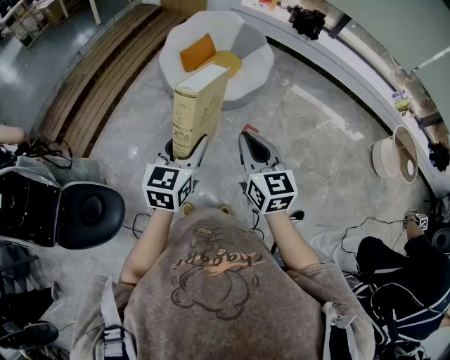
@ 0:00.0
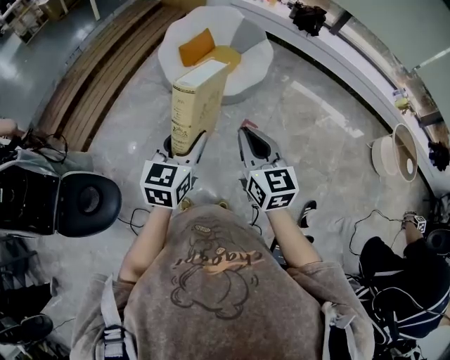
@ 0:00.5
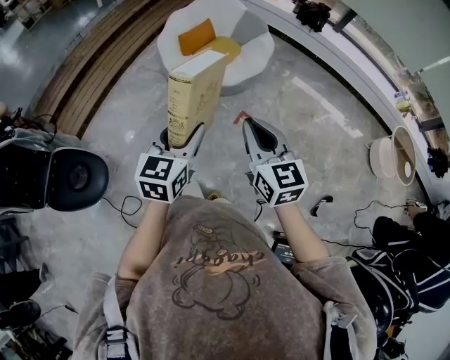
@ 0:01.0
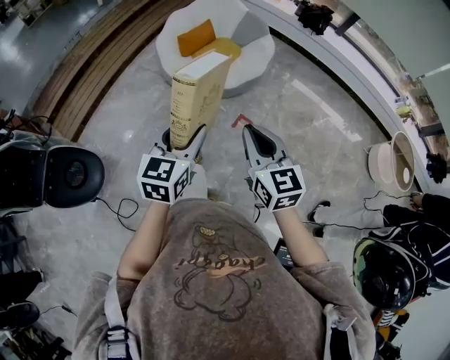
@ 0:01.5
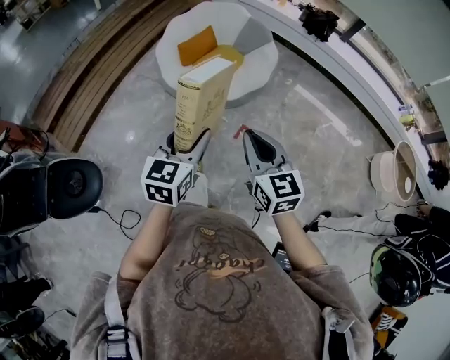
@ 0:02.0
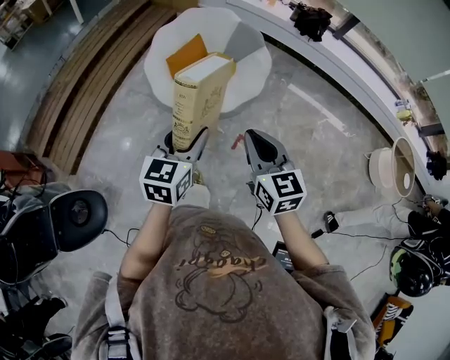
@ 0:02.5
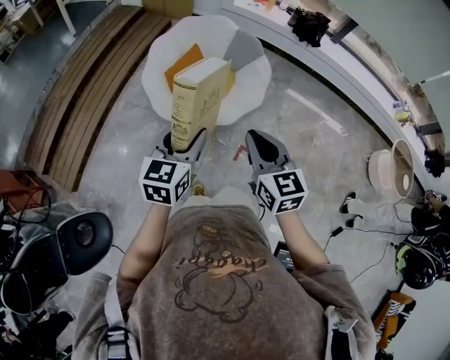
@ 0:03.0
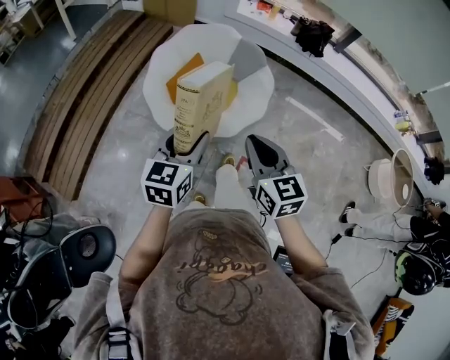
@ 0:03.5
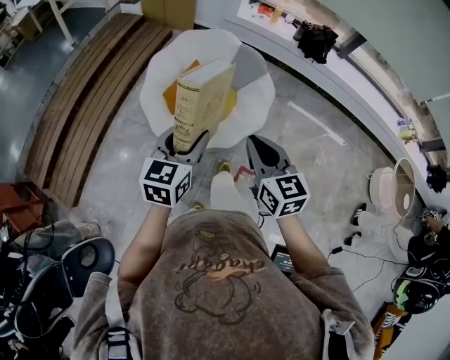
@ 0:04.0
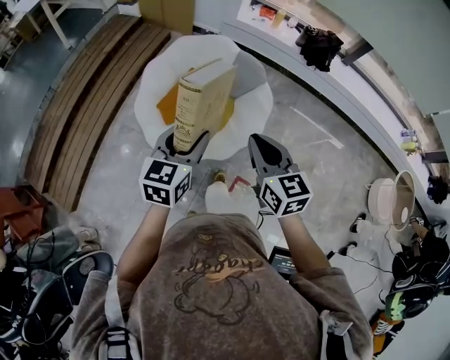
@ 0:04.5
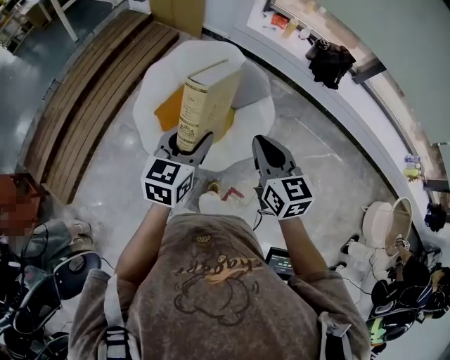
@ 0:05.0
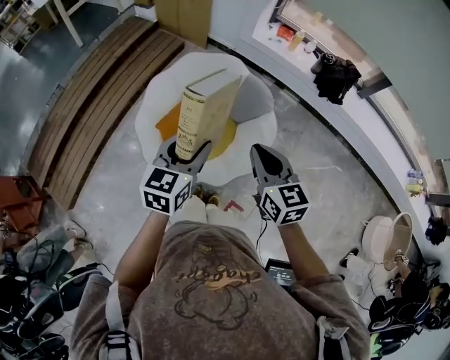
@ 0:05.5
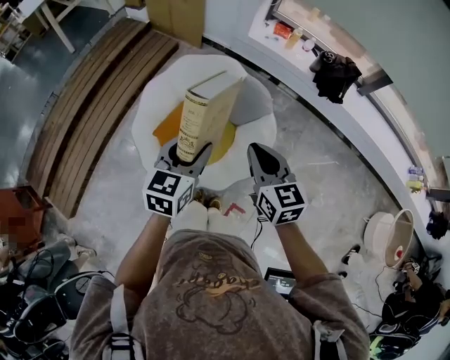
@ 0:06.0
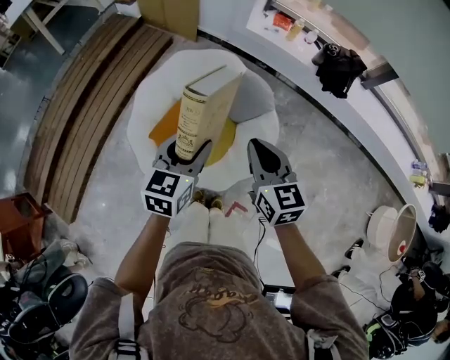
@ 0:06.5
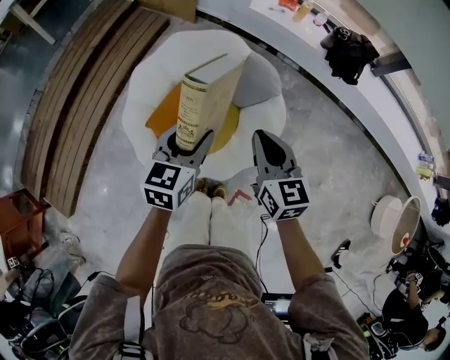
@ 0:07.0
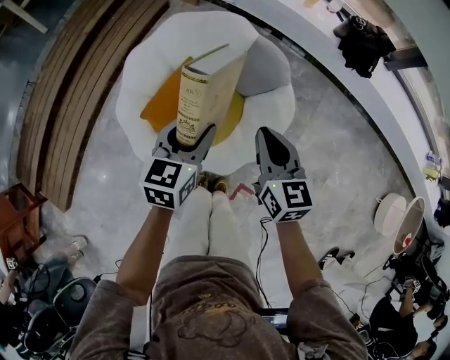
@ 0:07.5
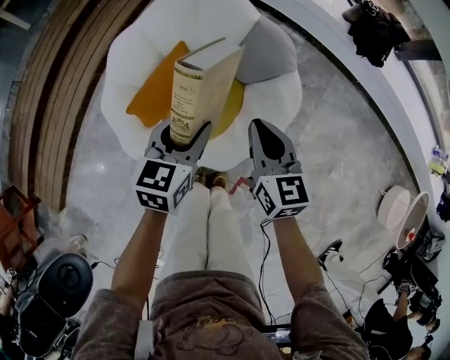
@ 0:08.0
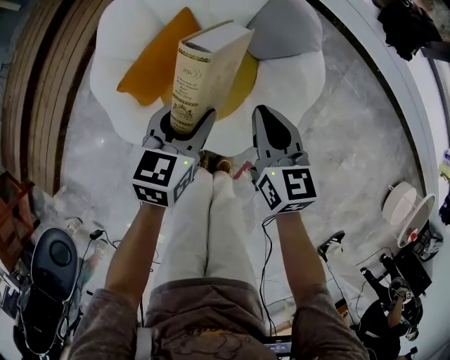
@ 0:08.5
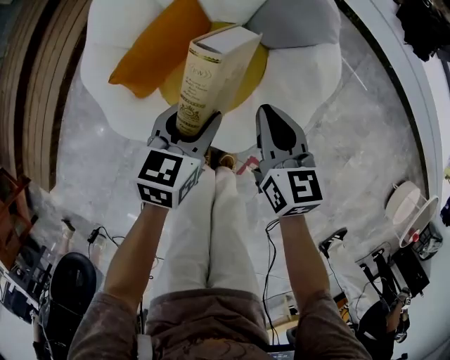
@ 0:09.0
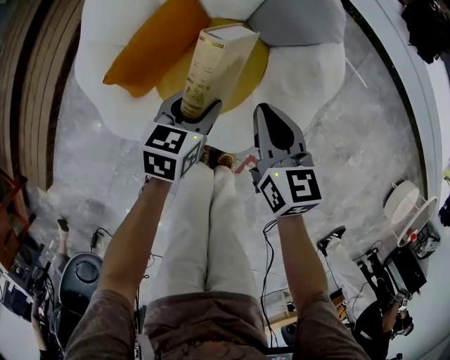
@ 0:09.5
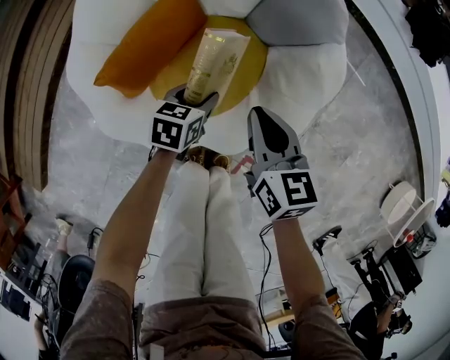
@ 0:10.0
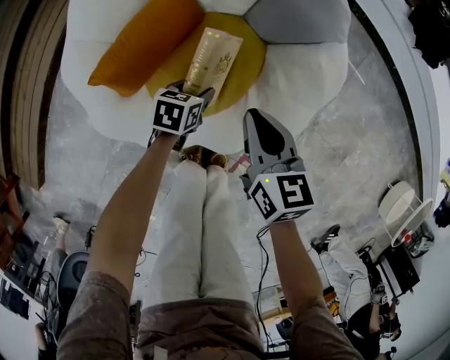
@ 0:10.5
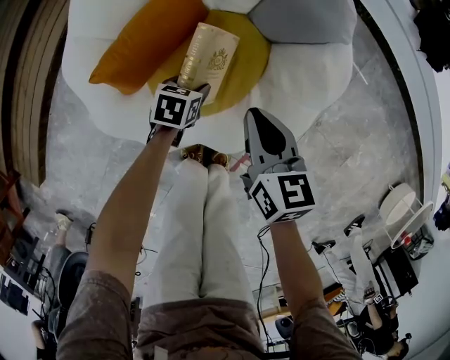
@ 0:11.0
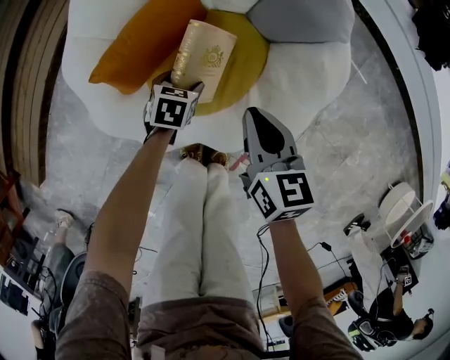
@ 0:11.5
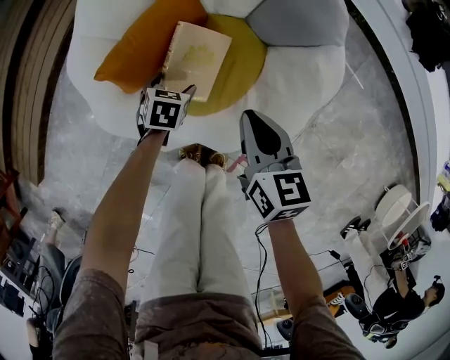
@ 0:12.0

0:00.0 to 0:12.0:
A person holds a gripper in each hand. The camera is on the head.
0:00.0 to 0:02.0: The two grippers go roughly 10 cm forward.
0:02.0 to 0:04.0: Both grippers travel together forward, some 35 cm.
0:04.0 to 0:06.0: Both grippers travel together forward, roughly 25 cm.
0:06.0 to 0:08.0: The two grippers go some 25 cm downward.
0:08.0 to 0:10.0: The left gripper travels downward by about 30 cm, and turns by about 30 degrees, while the right gripper heads downward, covering approximately 20 cm.
0:10.0 to 0:12.0: The left gripper heads to the left and downward, covering approximately 10 cm, changes its angle by about 20 degrees, and opens up.

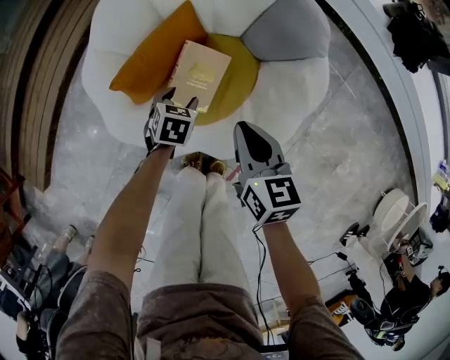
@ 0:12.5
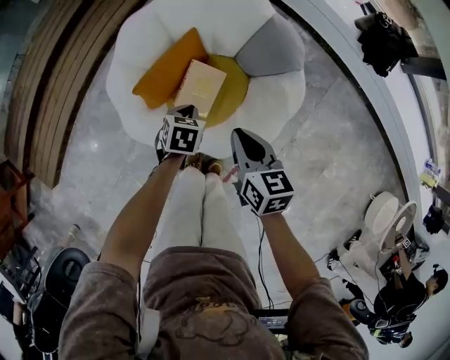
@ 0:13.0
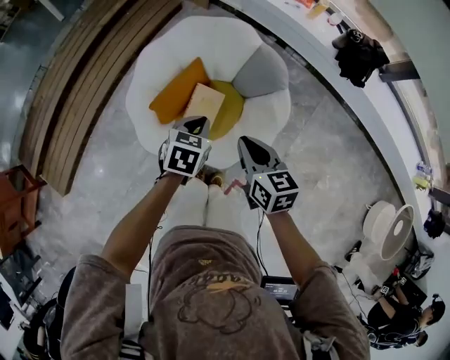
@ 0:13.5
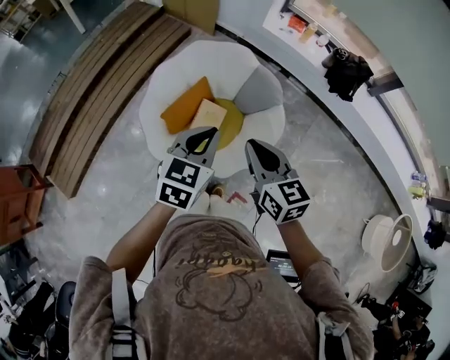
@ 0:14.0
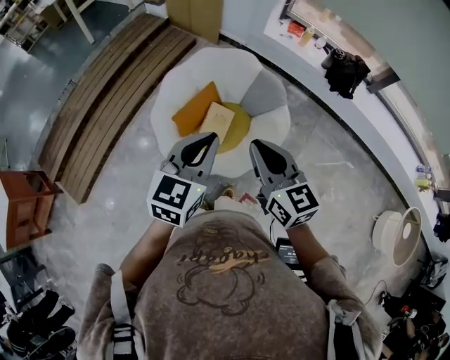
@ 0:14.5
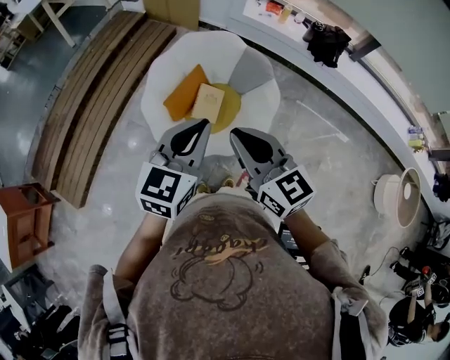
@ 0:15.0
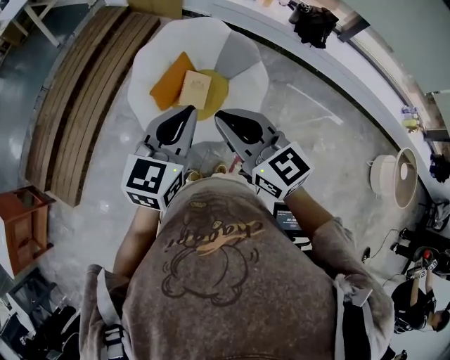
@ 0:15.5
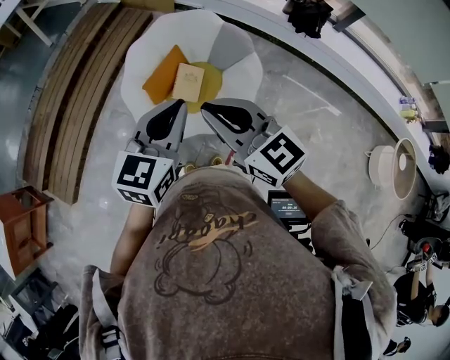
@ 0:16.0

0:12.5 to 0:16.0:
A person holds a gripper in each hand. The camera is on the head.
0:12.5 to 0:14.5: Both grippers travel together upward, some 50 cm. The left gripper tips its fingers upward by approximately 50 degrees, and closes, while the right gripper swivels some 30 degrees.
0:14.5 to 0:16.0: The right gripper shifts approximately 10 cm backward and to the left. Meanwhile the left gripper goes about 10 cm backward.

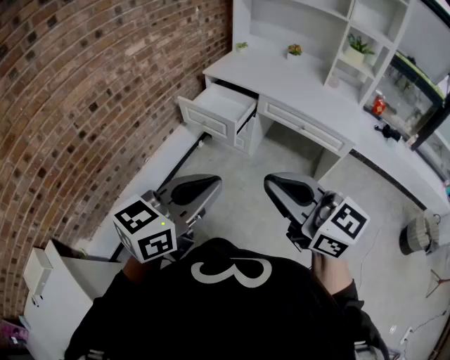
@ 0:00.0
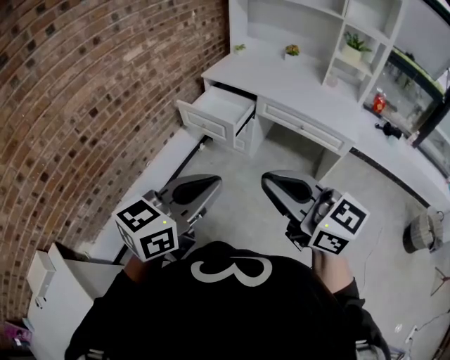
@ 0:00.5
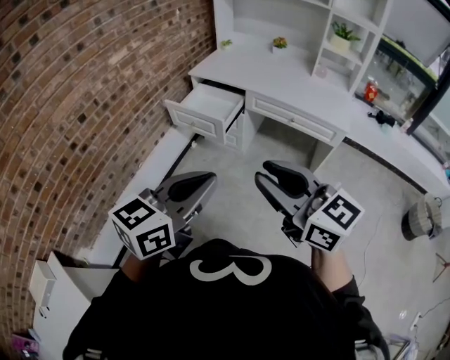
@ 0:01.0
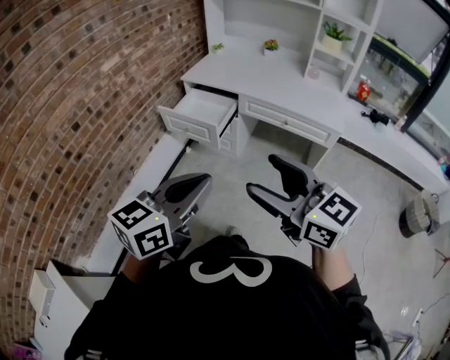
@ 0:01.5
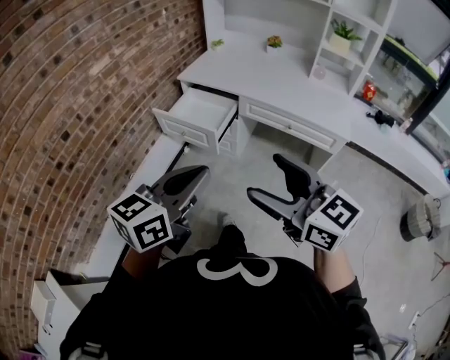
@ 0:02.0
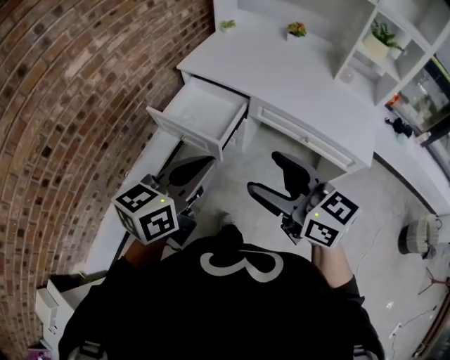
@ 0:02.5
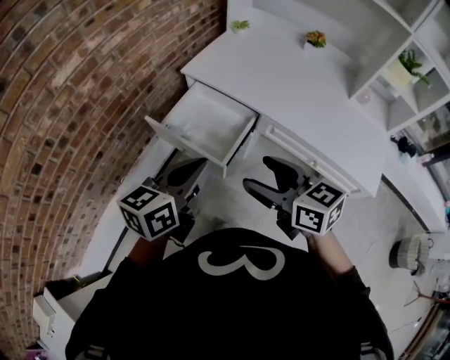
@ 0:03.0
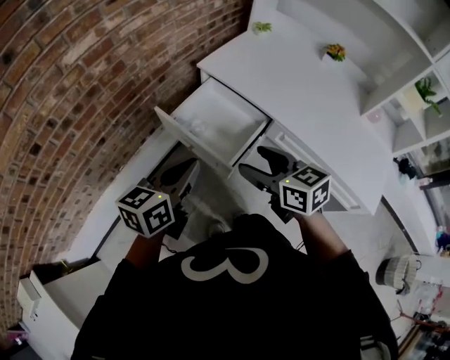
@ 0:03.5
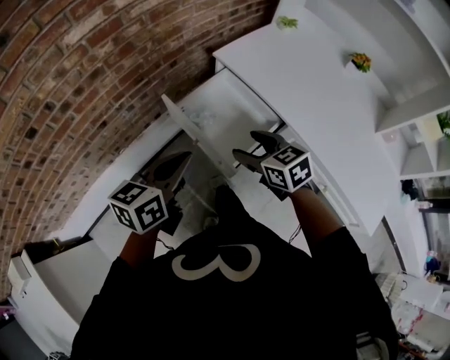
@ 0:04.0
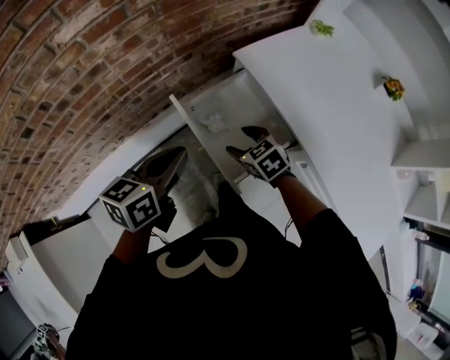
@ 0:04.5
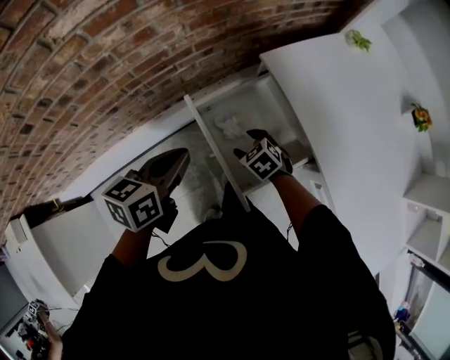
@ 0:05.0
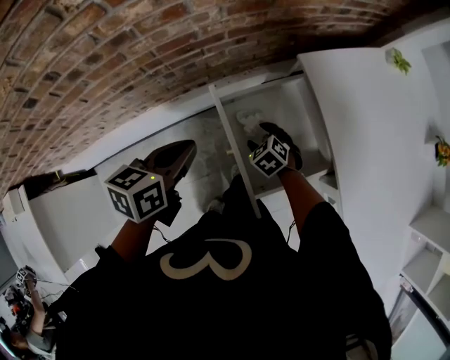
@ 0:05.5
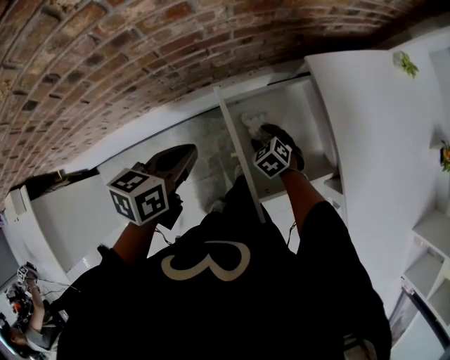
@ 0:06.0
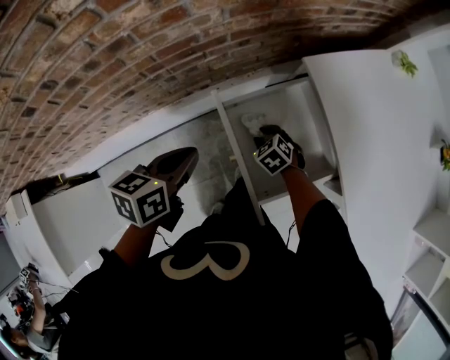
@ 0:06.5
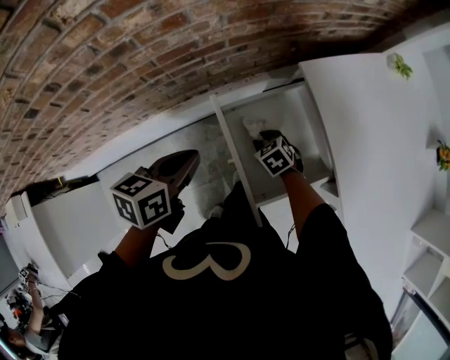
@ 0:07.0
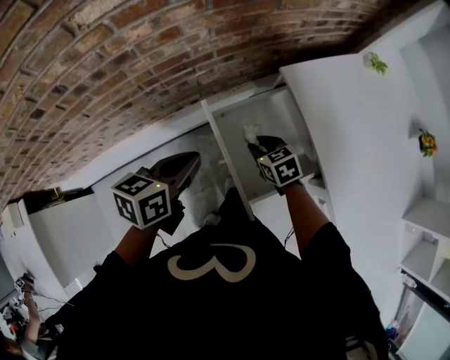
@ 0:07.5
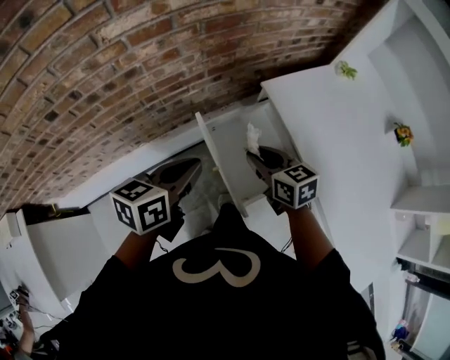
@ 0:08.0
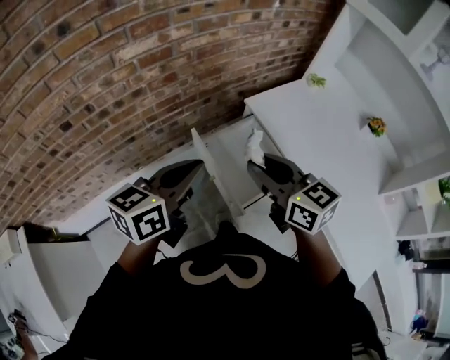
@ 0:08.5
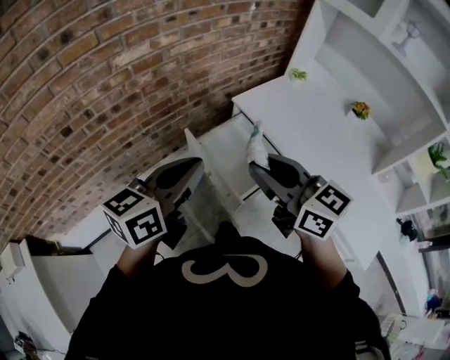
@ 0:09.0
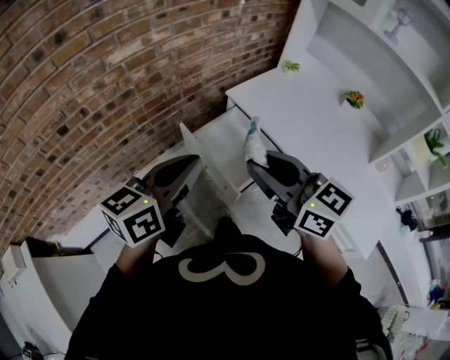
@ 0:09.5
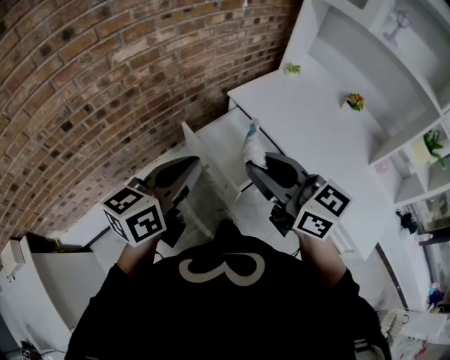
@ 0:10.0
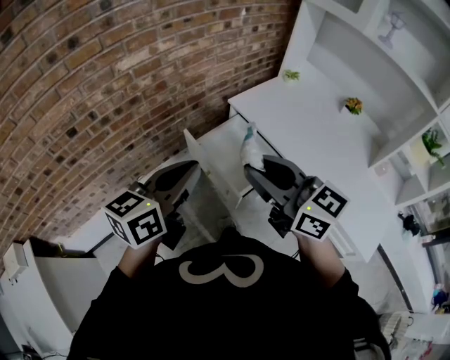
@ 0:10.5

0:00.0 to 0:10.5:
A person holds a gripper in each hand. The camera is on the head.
0:00.0 to 0:02.0: The right gripper travels forward and to the right by roughly 10 cm, and opens, while the left gripper travels forward by roughly 10 cm.
0:02.0 to 0:04.0: The grippers both shift forward and downward by about 50 cm. The left gripper turns by about 30 degrees. Meanwhile the right gripper angles its fingers downward, by approximately 30 degrees.
0:04.0 to 0:06.5: The right gripper shifts some 35 cm downward and forward, changes its angle by approximately 40 degrees, and closes up; the left gripper heads forward, downward and to the left, covering approximately 20 cm, and turns by approximately 30 degrees.
0:06.5 to 0:08.5: The left gripper moves upward and backward, roughly 25 cm, and changes its angle by roughly 30 degrees, while the right gripper goes some 50 cm upward, and angles its fingers upward, by some 50 degrees.
0:08.5 to 0:10.5: The right gripper goes approximately 15 cm backward and upward. The left gripper moves backward, roughly 10 cm.
